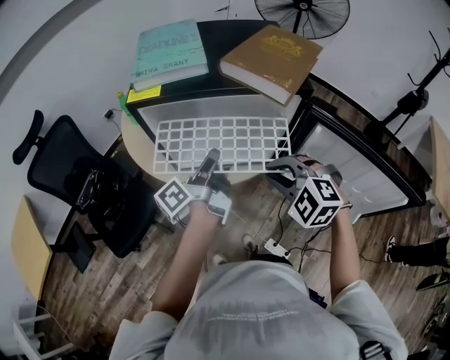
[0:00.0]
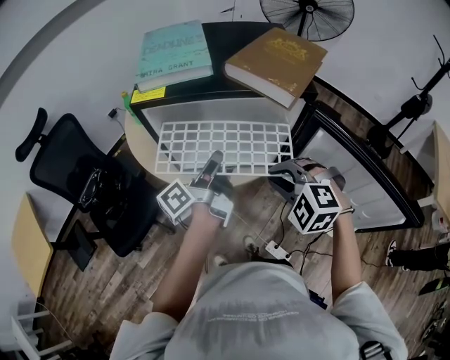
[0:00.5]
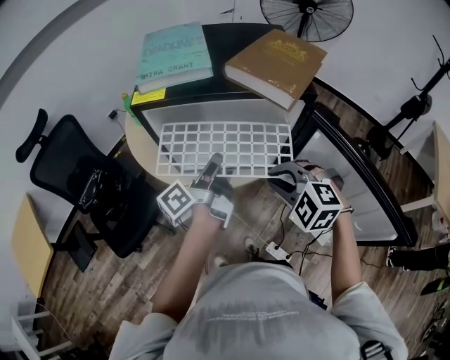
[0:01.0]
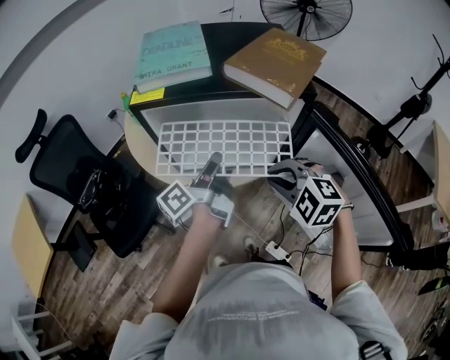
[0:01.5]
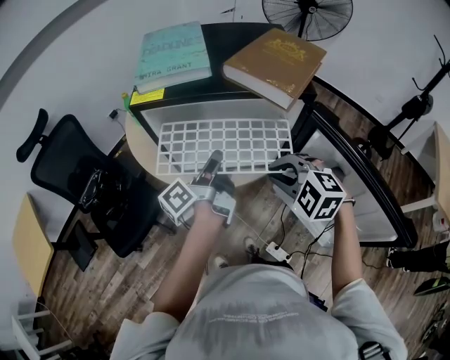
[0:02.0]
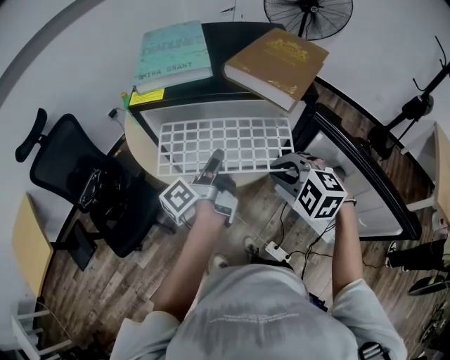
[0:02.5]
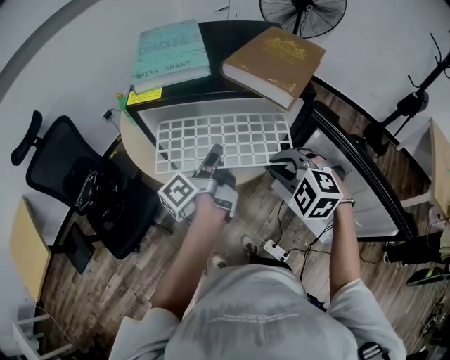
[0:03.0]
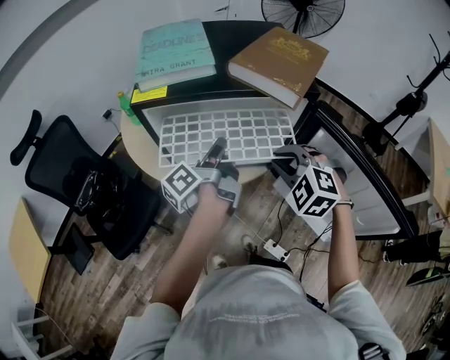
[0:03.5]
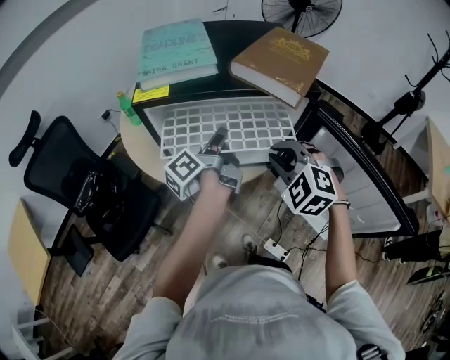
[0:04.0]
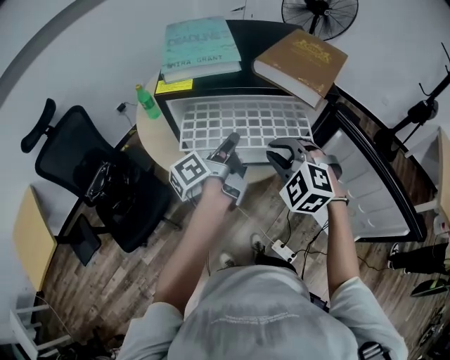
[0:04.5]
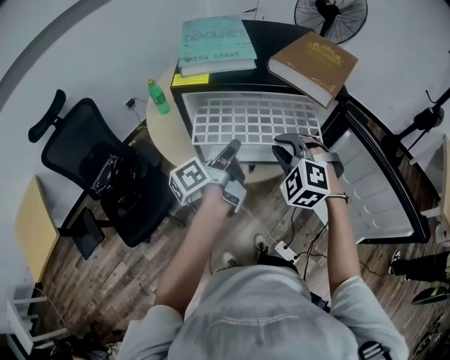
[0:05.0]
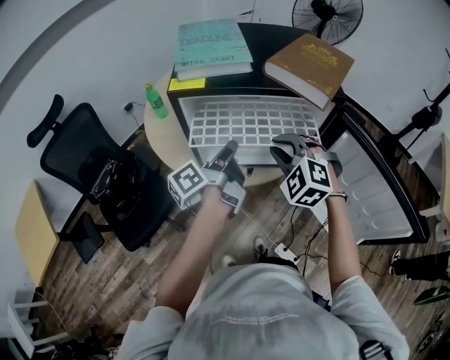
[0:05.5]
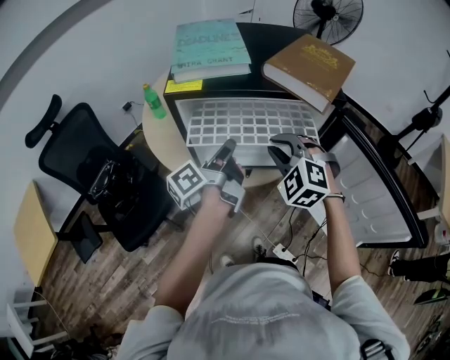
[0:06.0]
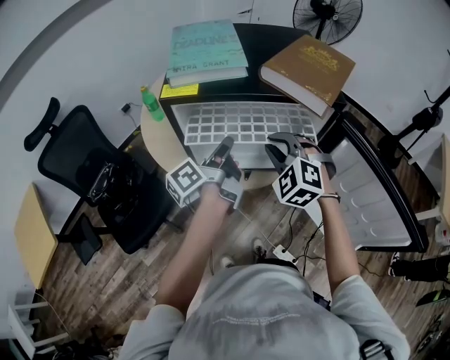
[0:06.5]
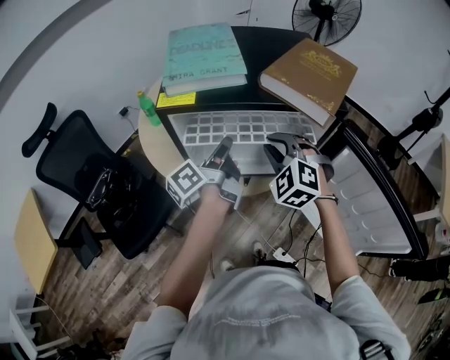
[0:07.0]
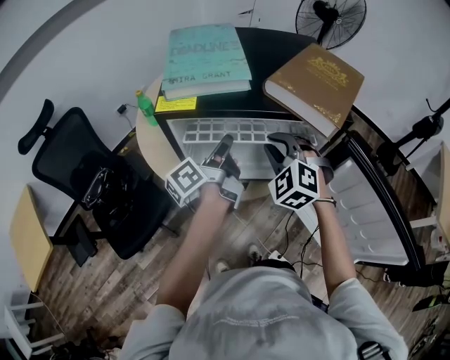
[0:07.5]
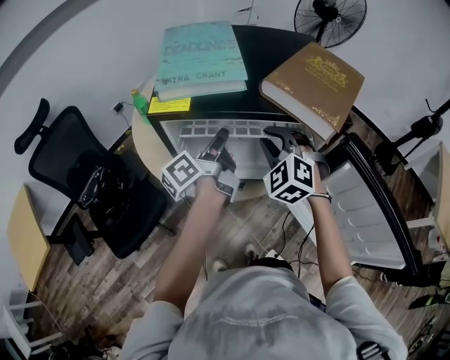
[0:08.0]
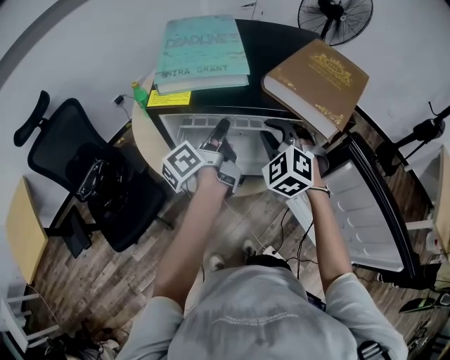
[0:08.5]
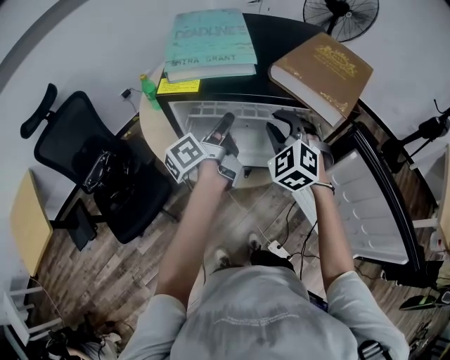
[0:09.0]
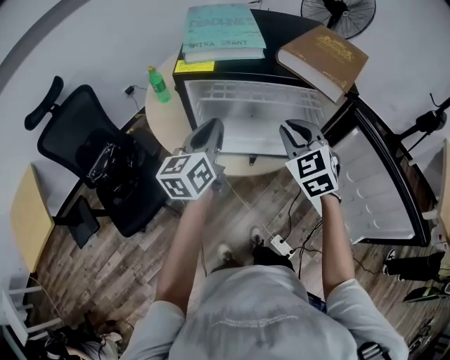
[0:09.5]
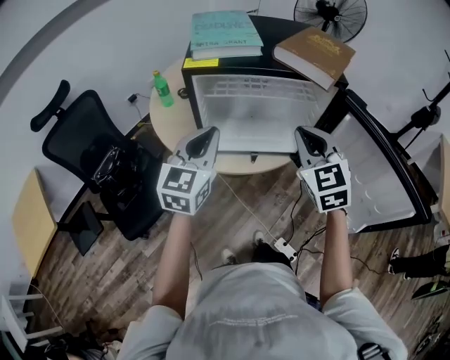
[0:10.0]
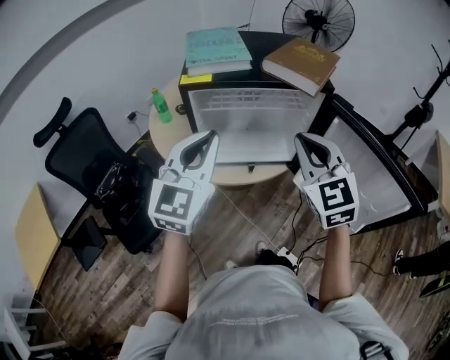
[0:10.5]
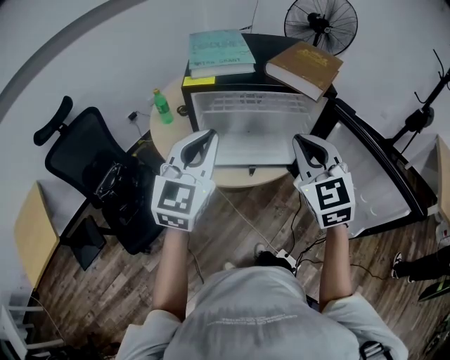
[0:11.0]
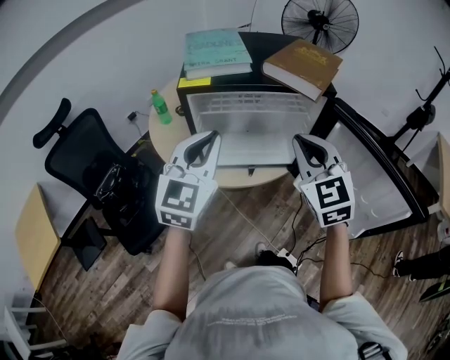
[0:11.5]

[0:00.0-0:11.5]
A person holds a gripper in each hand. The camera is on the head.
0:00.0 to 0:02.0: The grippers move only a little.
0:02.0 to 0:04.0: The left gripper travels forward by approximately 5 cm, while the right gripper moves approximately 5 cm.
0:04.0 to 0:06.0: The right gripper is displaced to the left by roughly 5 cm; the left gripper moves about 5 cm.
0:06.0 to 0:07.5: The grippers both shift forward by approximately 5 cm.
0:07.5 to 0:09.5: The right gripper goes roughly 5 cm backward, and changes its angle by approximately 30 degrees. Meanwhile the left gripper shifts some 10 cm backward and to the left, and rotates around the line of its fingers by some 50 degrees, clockwise from behind.
0:09.5 to 0:11.5: Both grippers travel together upward and backward, approximately 15 cm. The left gripper twists approximately 40 degrees clockwise, seen from behind.

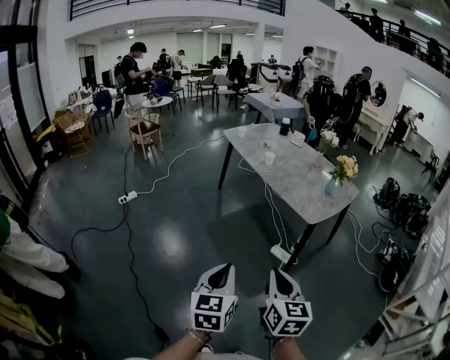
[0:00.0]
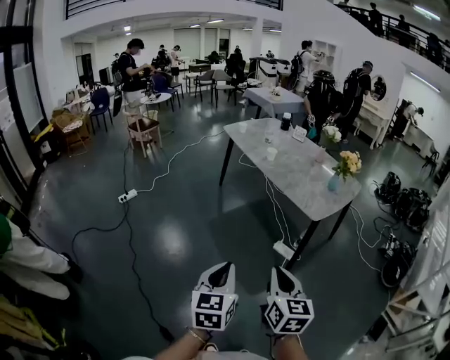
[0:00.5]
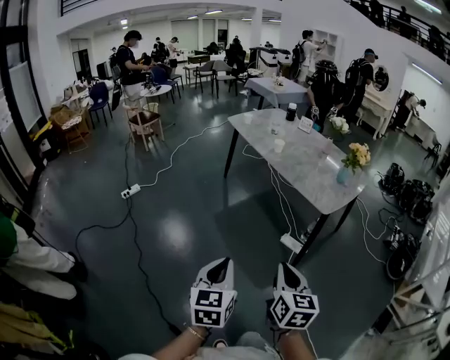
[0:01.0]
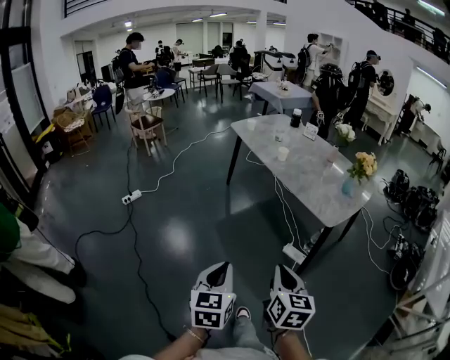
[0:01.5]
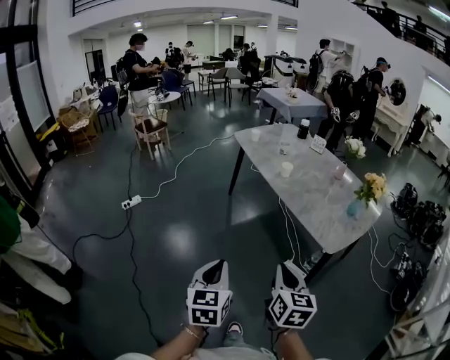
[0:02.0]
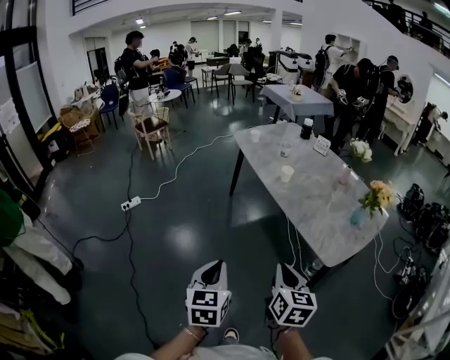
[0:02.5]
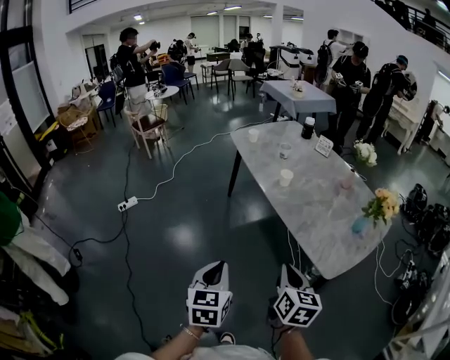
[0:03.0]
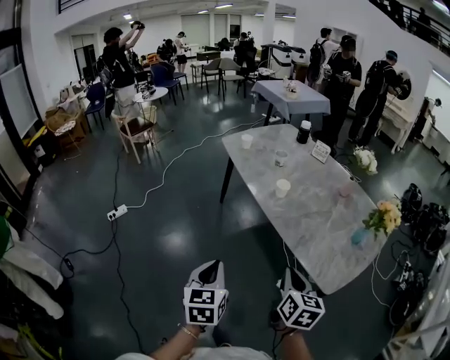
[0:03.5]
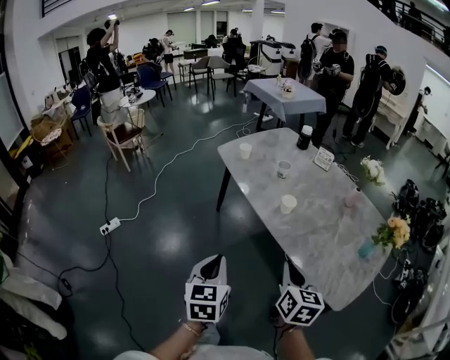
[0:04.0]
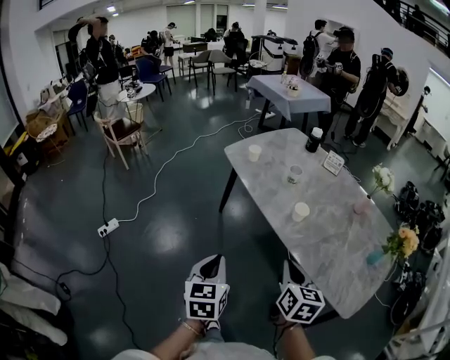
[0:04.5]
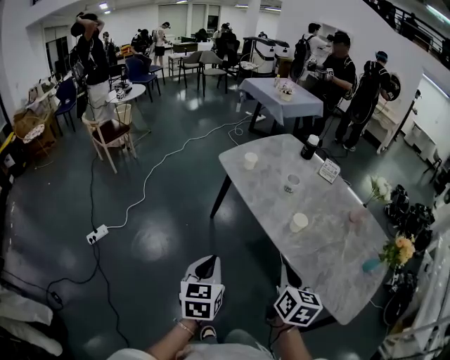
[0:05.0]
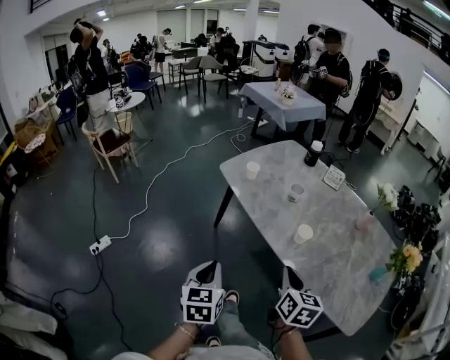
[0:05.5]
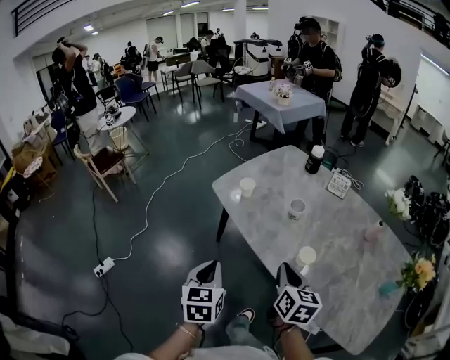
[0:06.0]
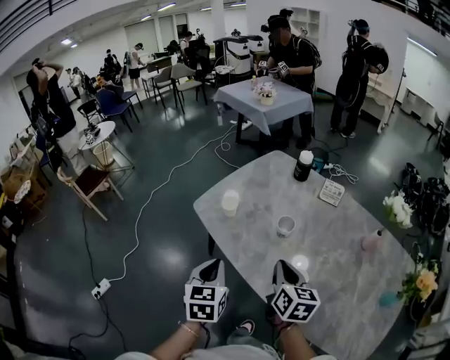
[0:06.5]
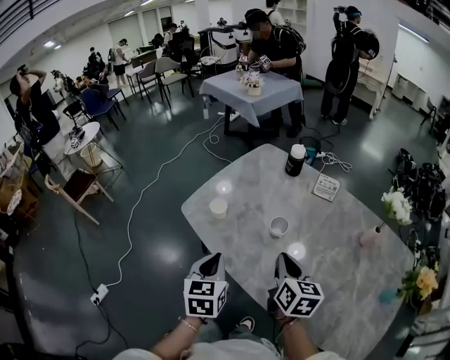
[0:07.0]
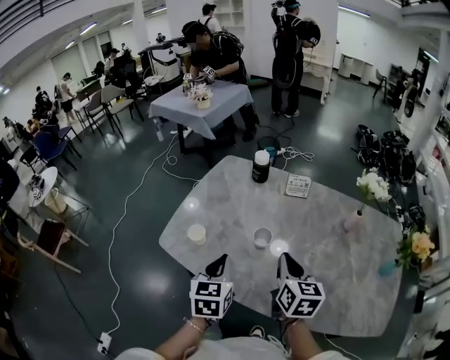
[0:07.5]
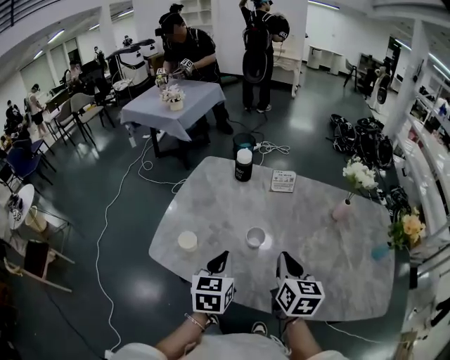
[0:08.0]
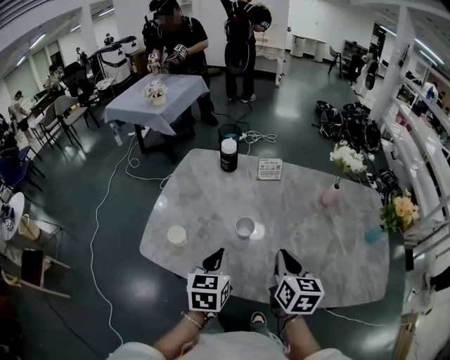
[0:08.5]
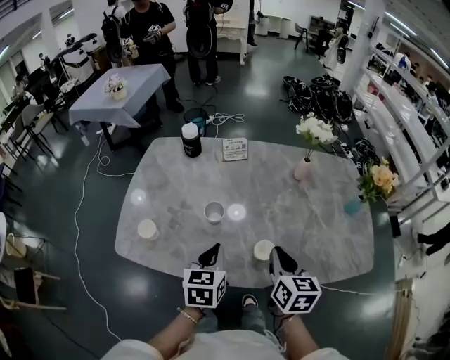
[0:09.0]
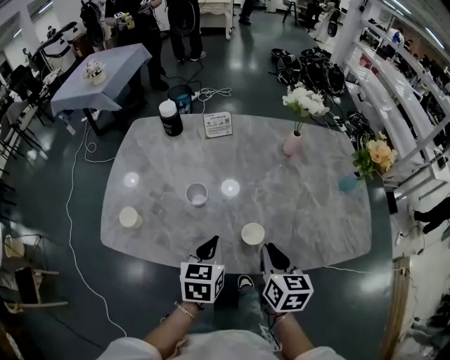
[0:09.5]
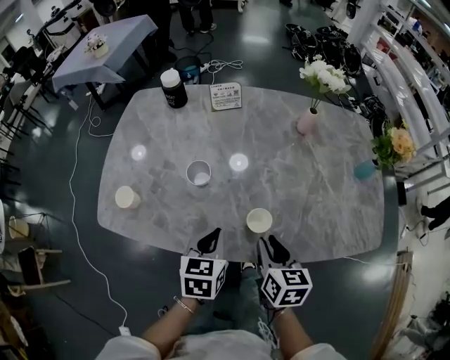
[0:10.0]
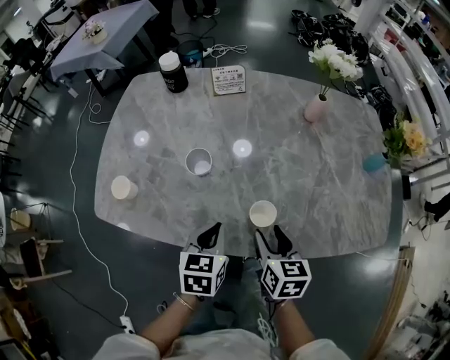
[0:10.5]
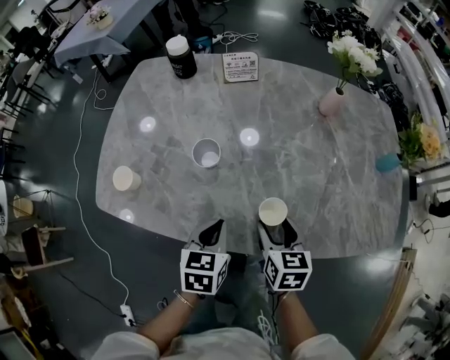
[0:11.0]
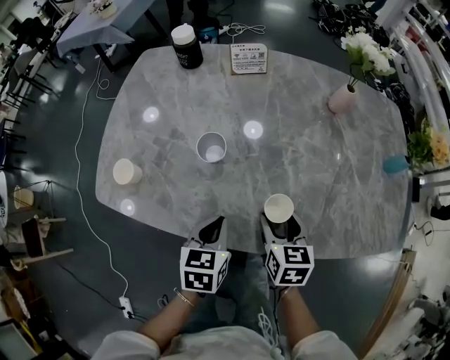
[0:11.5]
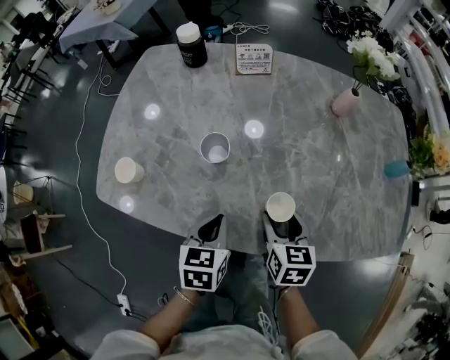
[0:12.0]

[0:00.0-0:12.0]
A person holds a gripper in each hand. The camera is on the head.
0:00.0 to 0:02.0: The grippers both shift forward by some 20 cm.
0:02.0 to 0:04.0: The grippers both shift forward by about 35 cm.
0:04.0 to 0:06.0: The two grippers go approximately 30 cm forward.
0:06.0 to 0:08.0: The left gripper shifts by approximately 30 cm, and turns by approximately 40 degrees, while the right gripper changes place by about 20 cm, and turns by approximately 30 degrees.
0:08.0 to 0:10.0: The left gripper moves to the right and downward, approximately 20 cm, and changes its angle by roughly 20 degrees, while the right gripper is displaced downward, to the right and backward by approximately 20 cm.
0:10.0 to 0:12.0: The right gripper travels downward and forward by approximately 10 cm, and opens its fingers; the left gripper moves approximately 5 cm.

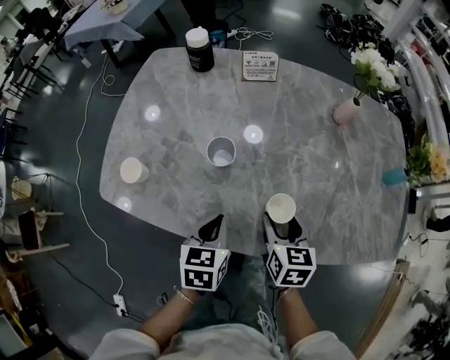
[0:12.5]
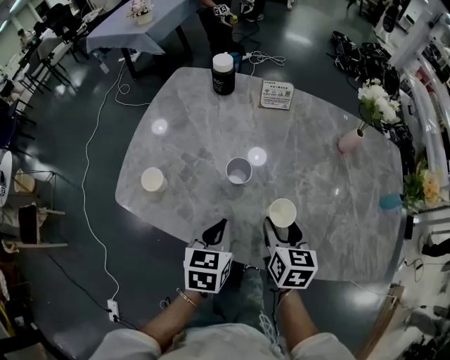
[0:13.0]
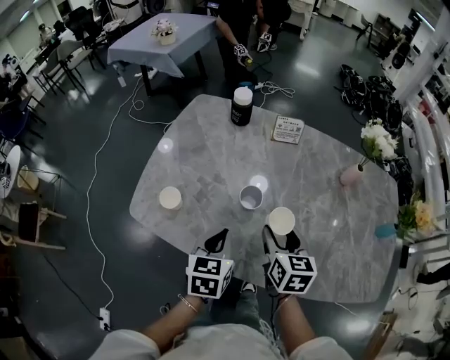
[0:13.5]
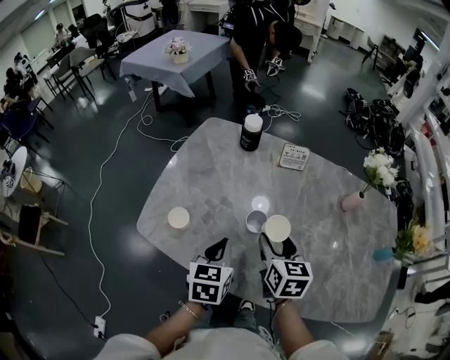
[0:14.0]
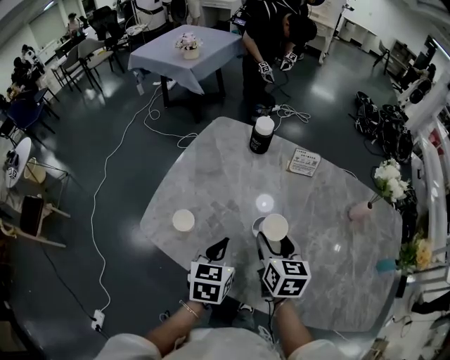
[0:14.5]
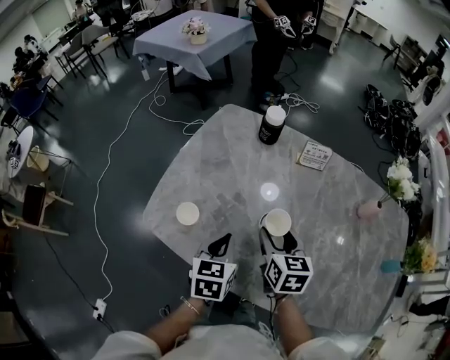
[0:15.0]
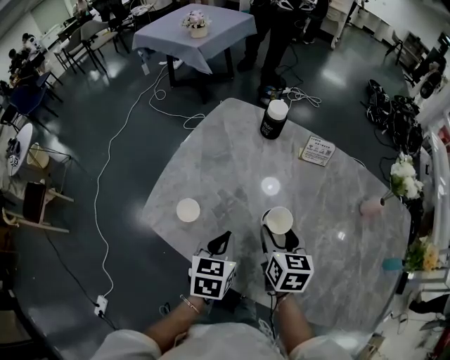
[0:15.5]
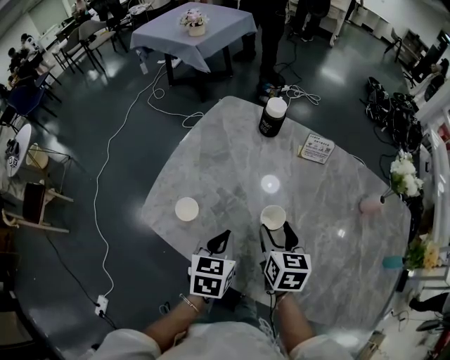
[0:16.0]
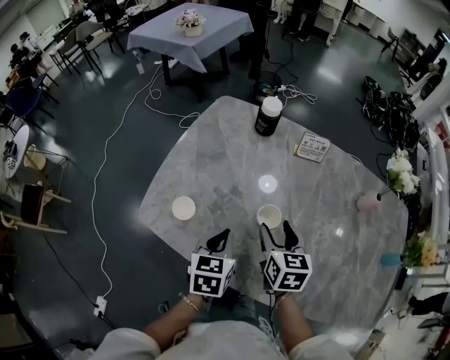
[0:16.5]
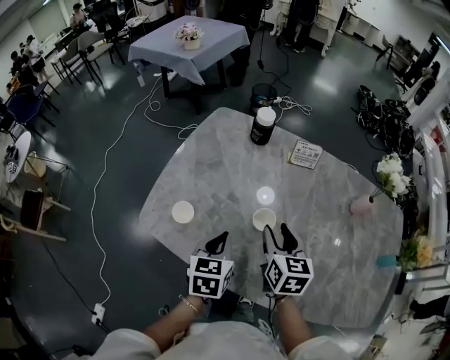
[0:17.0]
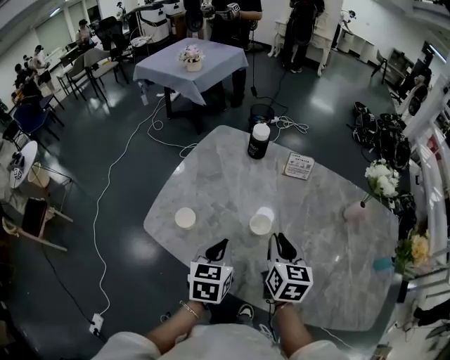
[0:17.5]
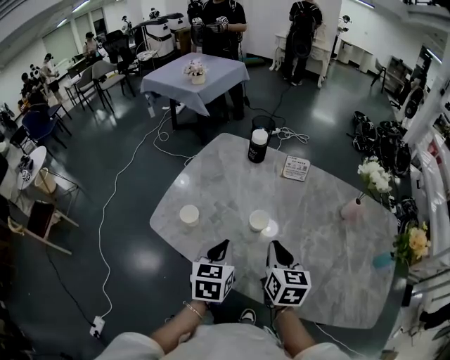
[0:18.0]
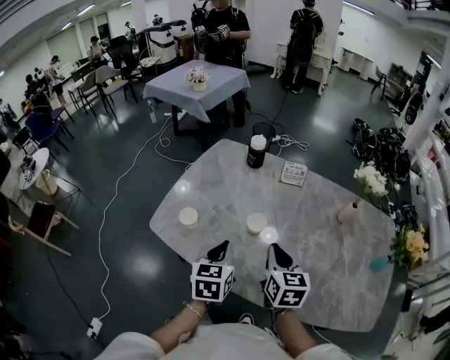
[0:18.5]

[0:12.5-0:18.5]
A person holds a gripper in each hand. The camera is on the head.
0:12.5 to 0:14.5: The two grippers go some 20 cm to the left, forward and upward.
0:14.5 to 0:16.5: The grippers move only a little.
0:16.5 to 0:18.5: The left gripper is displaced upward and backward by roughly 10 cm; the right gripper moves backward and upward, roughly 10 cm, and closes.
